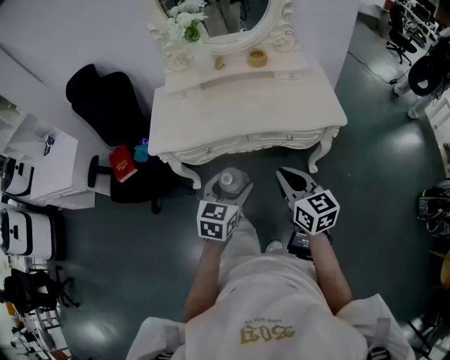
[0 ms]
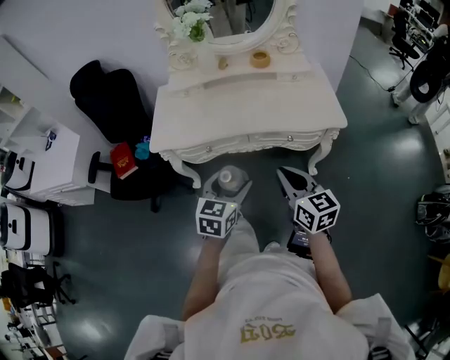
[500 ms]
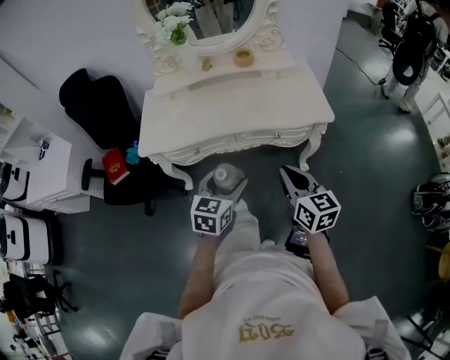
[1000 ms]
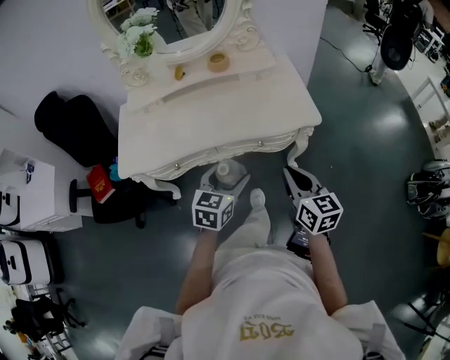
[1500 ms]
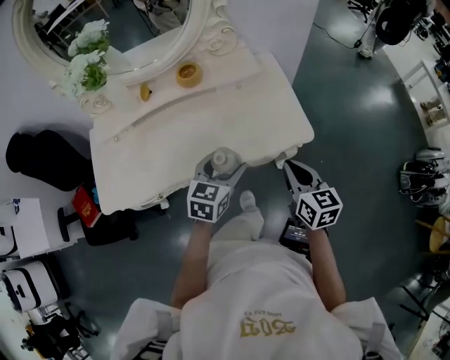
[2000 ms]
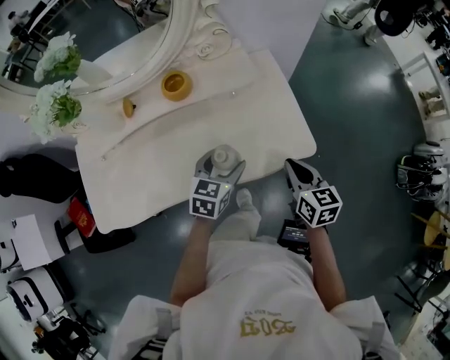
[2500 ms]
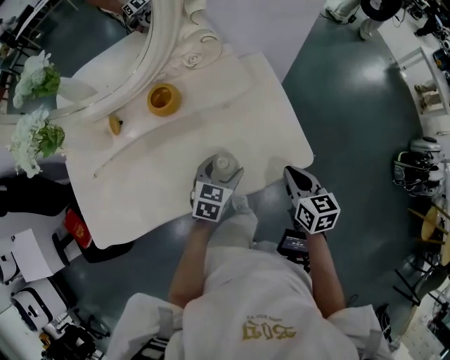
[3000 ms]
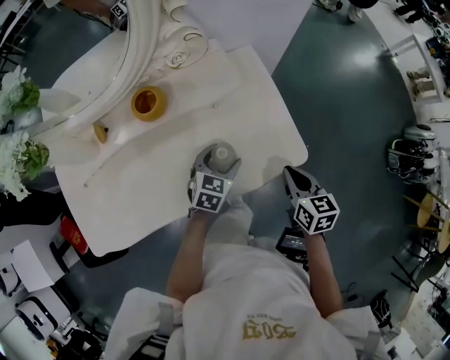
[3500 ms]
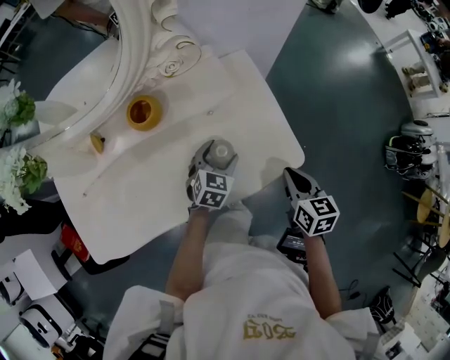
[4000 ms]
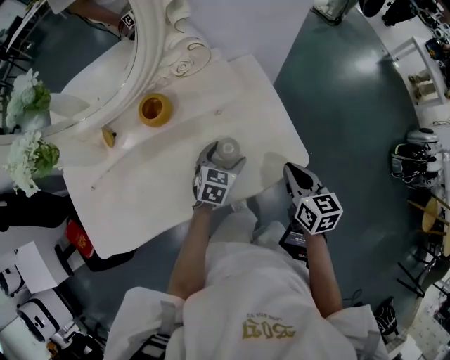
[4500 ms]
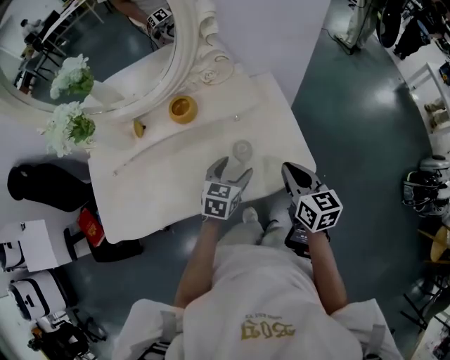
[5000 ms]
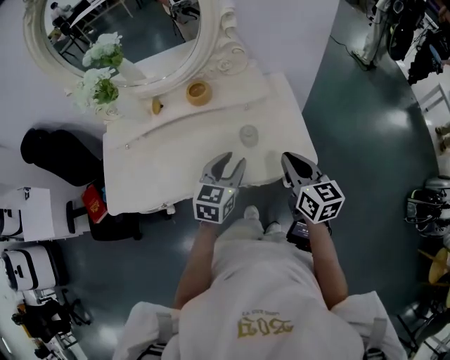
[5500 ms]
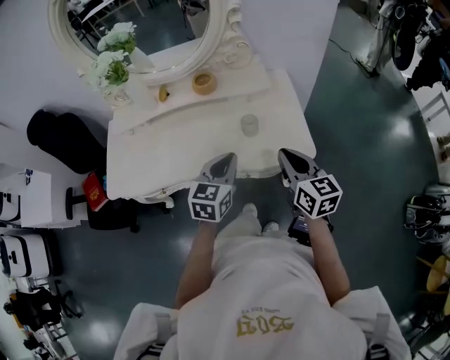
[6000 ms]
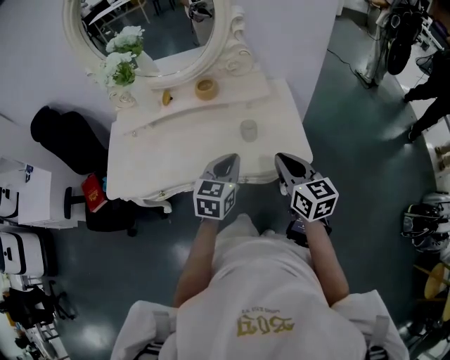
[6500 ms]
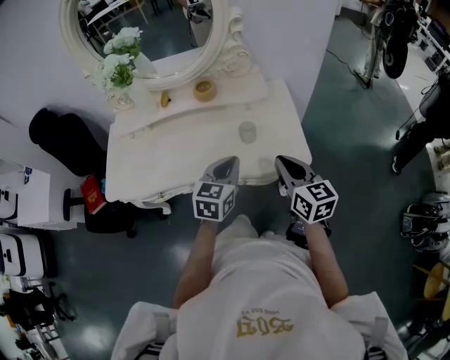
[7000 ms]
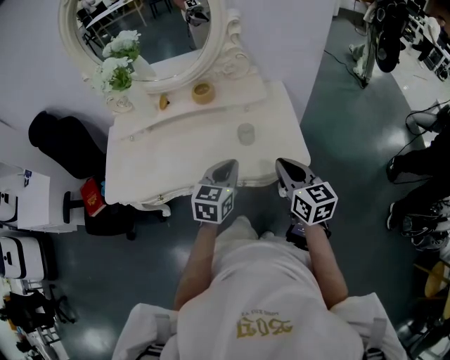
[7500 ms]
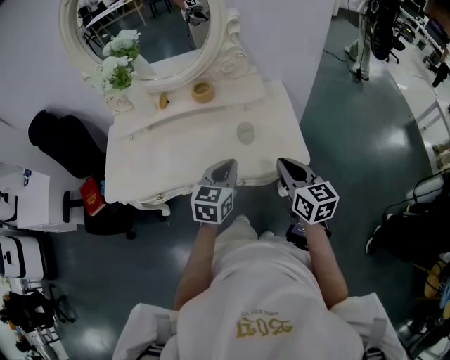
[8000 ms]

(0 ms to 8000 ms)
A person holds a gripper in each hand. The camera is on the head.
0 ms - 2000 ms: Both grippers move forward and to the right, some 30 cm. The right gripper turns by some 20 degrees.
2000 ms - 4000 ms: The left gripper travels forward and downward by roughly 25 cm, and swivels approximately 20 degrees. The right gripper moves forward and downward, roughly 15 cm.
4000 ms - 6000 ms: The right gripper heads upward, backward and to the left, covering roughly 15 cm, and rotates roughly 30 degrees, while the left gripper shifts approximately 25 cm upward and backward, swivels approximately 30 degrees, and closes up.
6000 ms - 8000 ms: The grippers stay close to where they were, moving slightly.

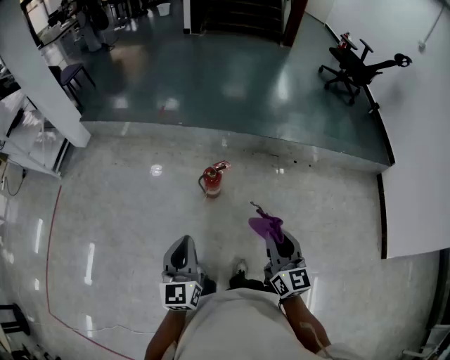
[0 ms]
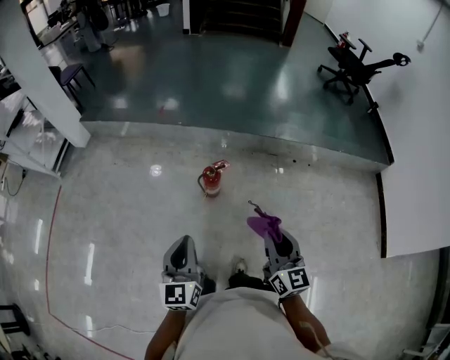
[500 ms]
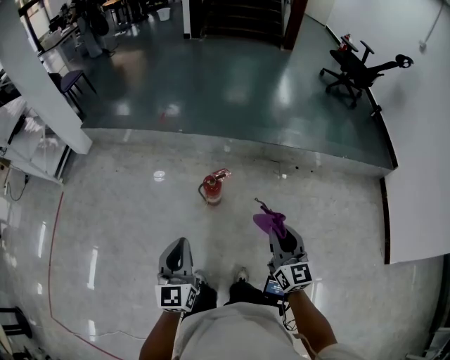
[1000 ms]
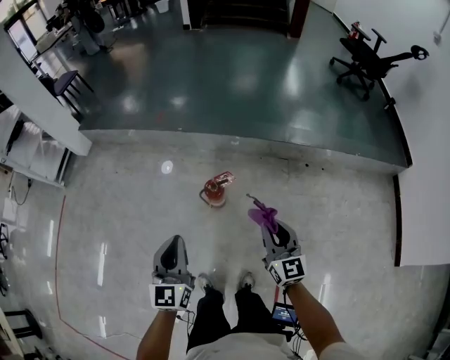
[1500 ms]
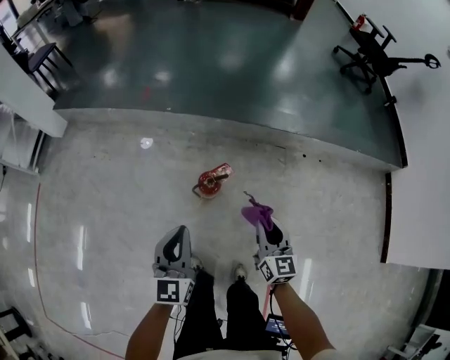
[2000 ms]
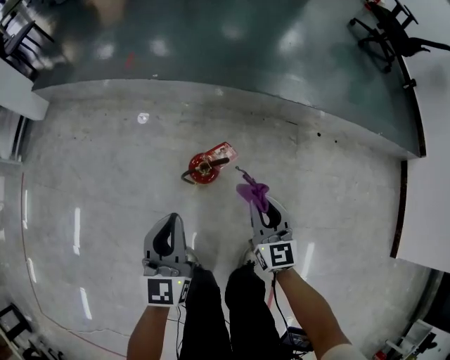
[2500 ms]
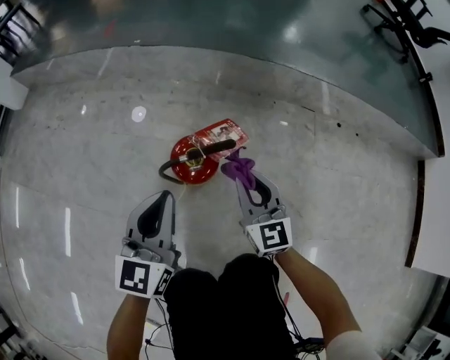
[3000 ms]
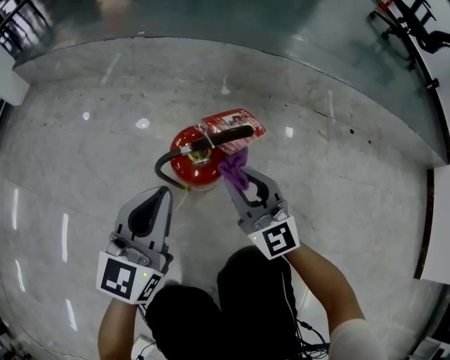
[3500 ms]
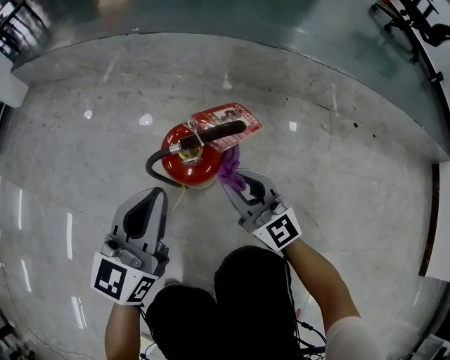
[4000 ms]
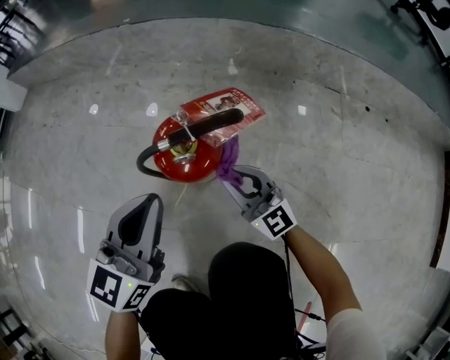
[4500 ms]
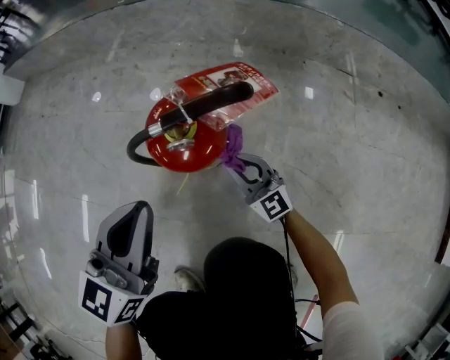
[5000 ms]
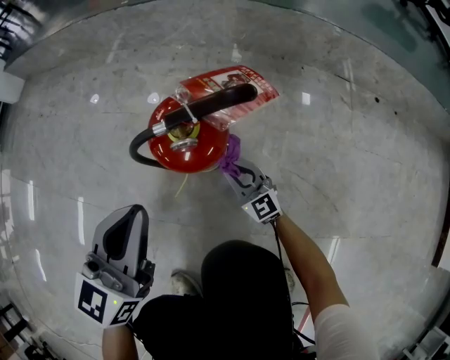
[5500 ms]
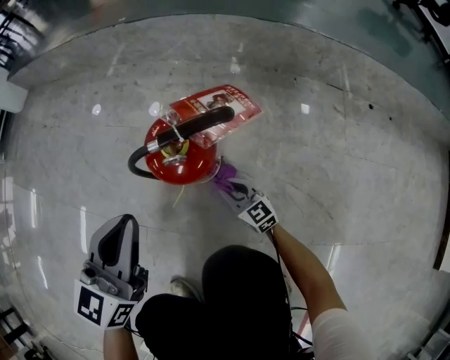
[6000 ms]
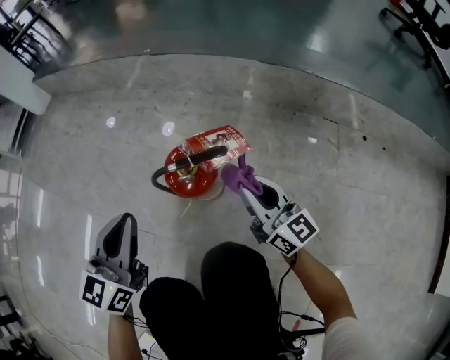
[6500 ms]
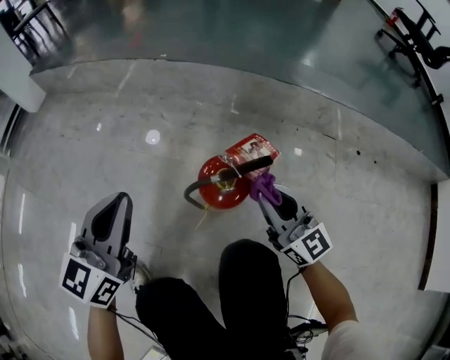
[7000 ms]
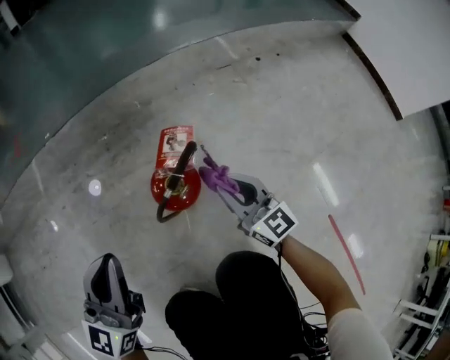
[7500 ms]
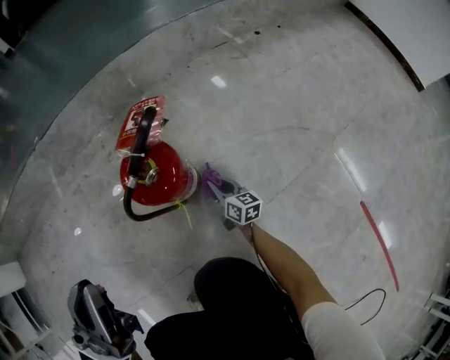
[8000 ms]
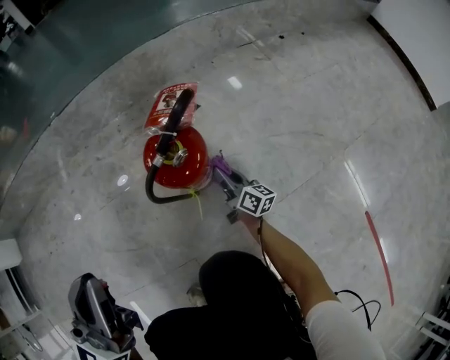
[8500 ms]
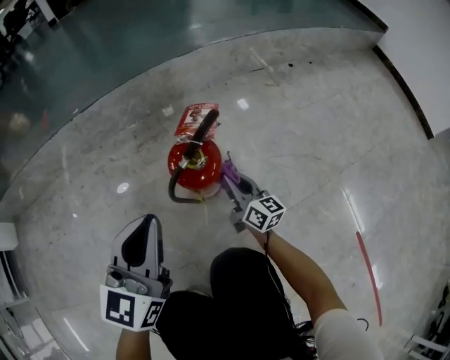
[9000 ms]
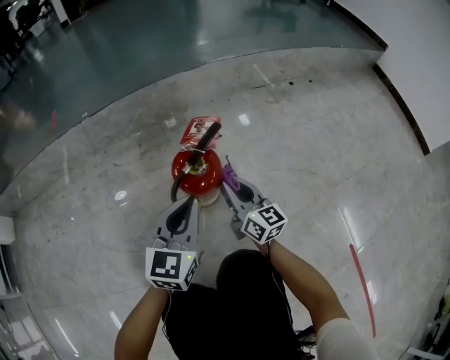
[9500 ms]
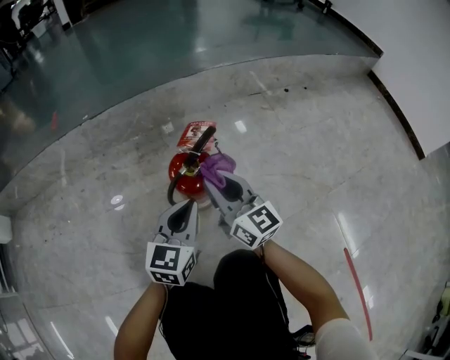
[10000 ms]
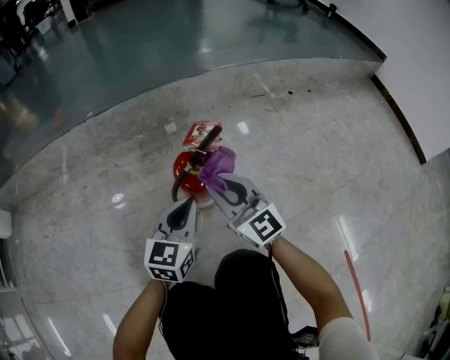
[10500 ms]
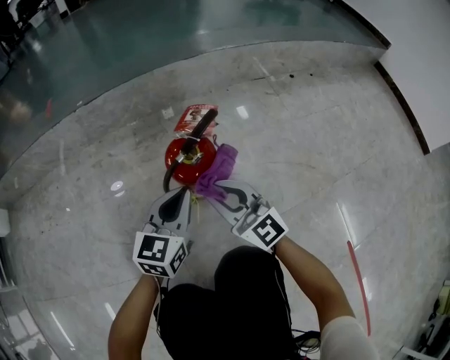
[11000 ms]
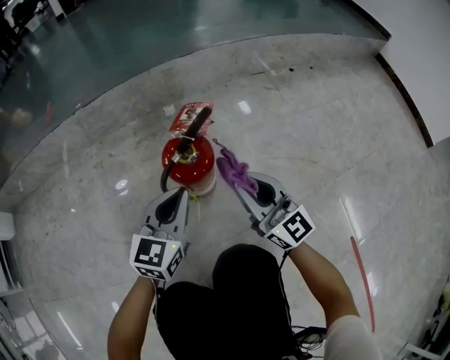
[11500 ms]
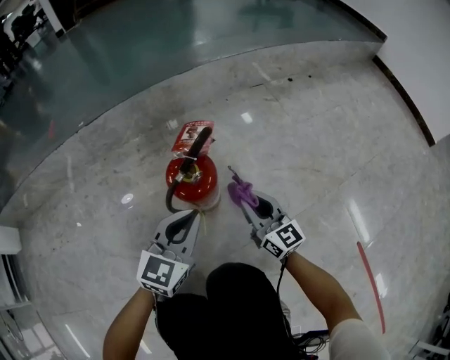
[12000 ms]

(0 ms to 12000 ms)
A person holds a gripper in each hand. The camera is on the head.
0 ms - 2000 ms: Both grippers travel together forward and downward, approximately 30 cm.
2000 ms - 4000 ms: Both grippers move downward, approximately 50 cm. The right gripper swivels approximately 40 degrees.
4000 ms - 6000 ms: The right gripper shifts approximately 25 cm downward, and swivels roughly 30 degrees.
6000 ms - 8000 ms: The left gripper is displaced upward by some 10 cm, and swivels some 30 degrees. Meanwhile the right gripper reaches some 35 cm upward, then returns, and changes its angle by roughly 70 degrees.
8000 ms - 10000 ms: The left gripper goes approximately 20 cm downward and to the right; the right gripper travels upward by some 35 cm, and changes its angle by about 40 degrees.
10000 ms - 12000 ms: The right gripper heads downward and to the right, covering approximately 15 cm.

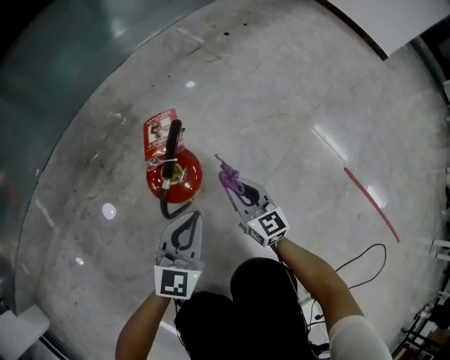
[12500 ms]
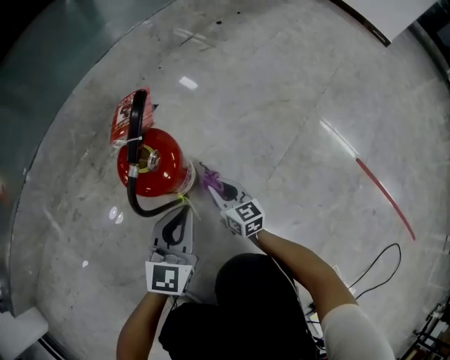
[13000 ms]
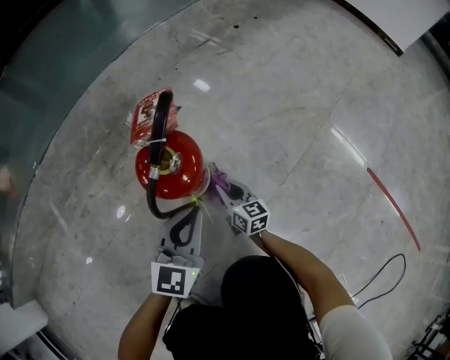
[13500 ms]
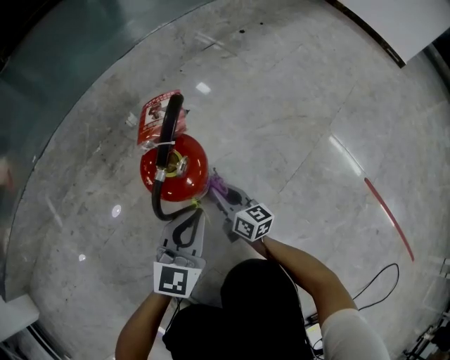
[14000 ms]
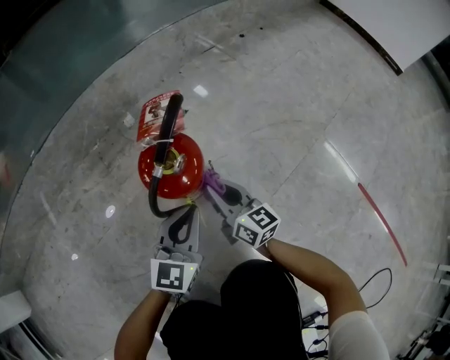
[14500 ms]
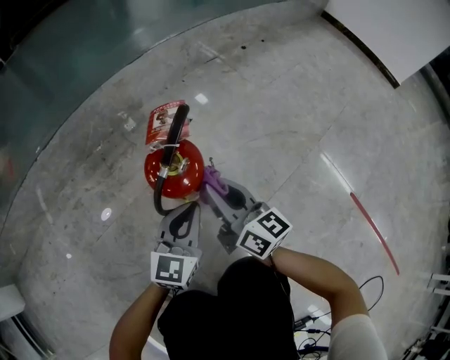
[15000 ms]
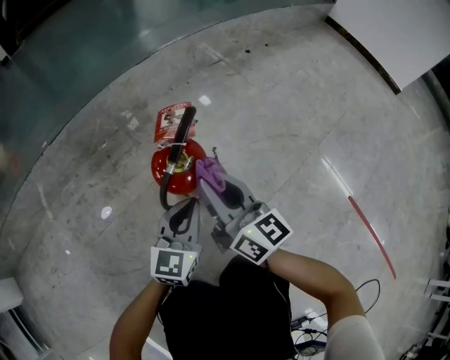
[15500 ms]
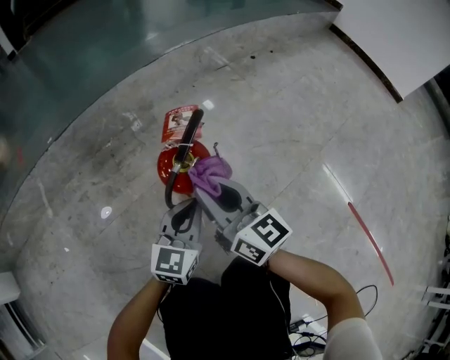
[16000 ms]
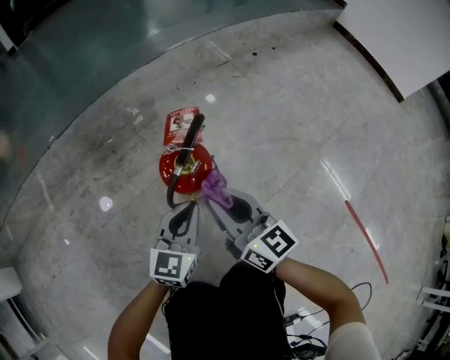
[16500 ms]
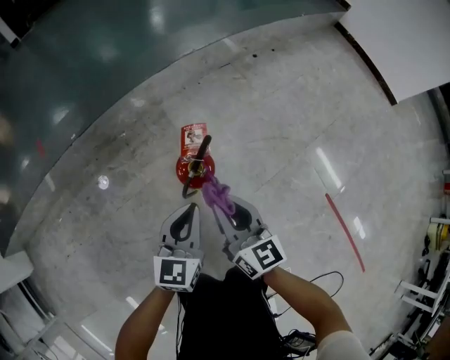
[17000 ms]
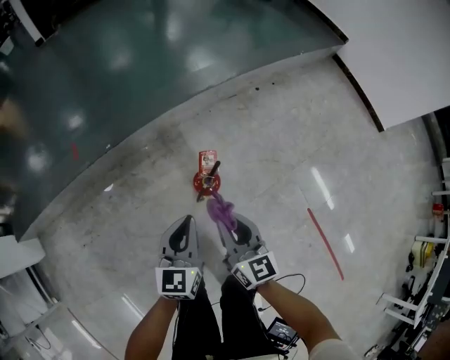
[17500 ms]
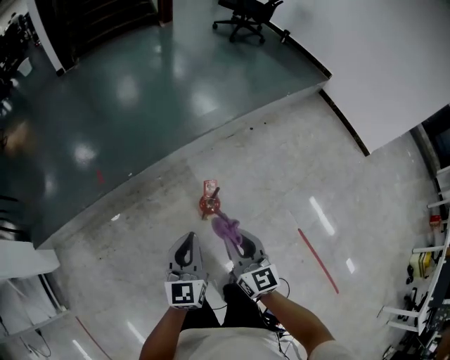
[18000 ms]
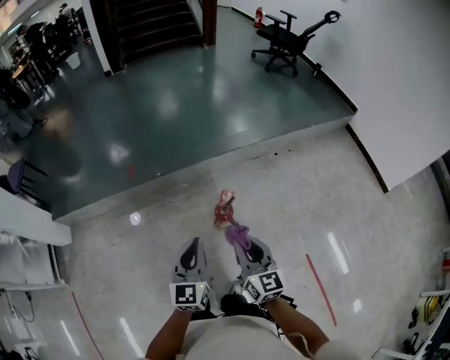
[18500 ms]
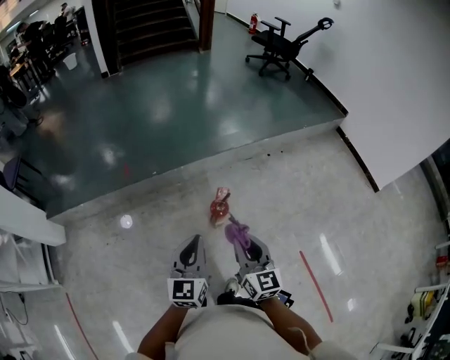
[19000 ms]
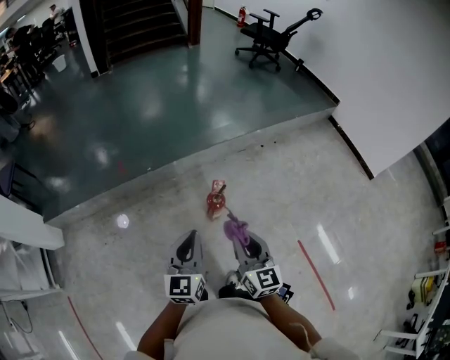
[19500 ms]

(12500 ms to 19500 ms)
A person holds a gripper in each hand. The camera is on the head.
12500 ms - 14500 ms: The left gripper moves downward, approximately 5 cm. Meanwhile the right gripper shifts about 5 cm to the left, moves some 20 cm downward and comes back, and turns by approximately 20 degrees.
14500 ms - 16000 ms: The right gripper shifts about 20 cm upward.
16000 ms - 17500 ms: The grippers both shift upward by some 40 cm.
17500 ms - 19500 ms: The grippers both shift upward and backward by approximately 35 cm.
